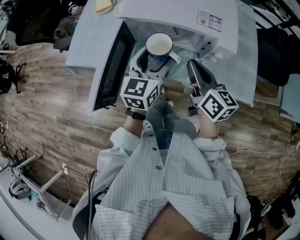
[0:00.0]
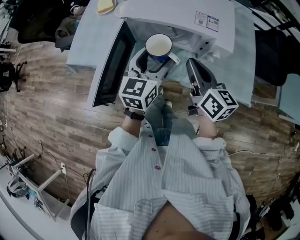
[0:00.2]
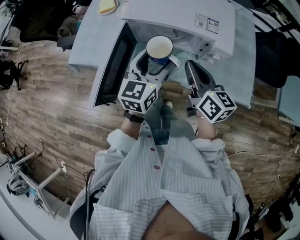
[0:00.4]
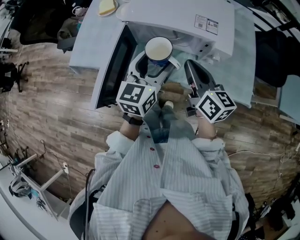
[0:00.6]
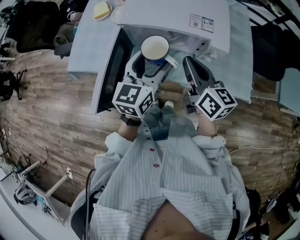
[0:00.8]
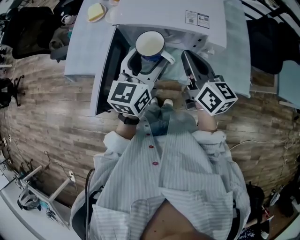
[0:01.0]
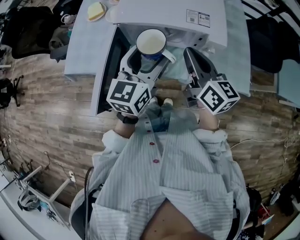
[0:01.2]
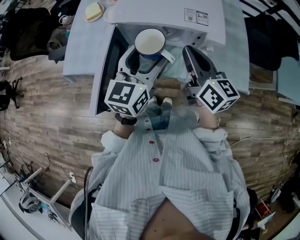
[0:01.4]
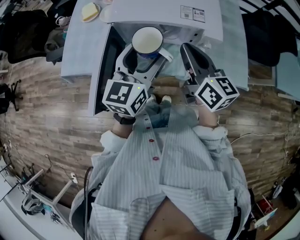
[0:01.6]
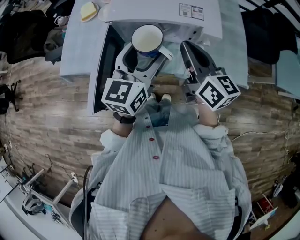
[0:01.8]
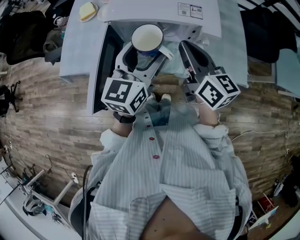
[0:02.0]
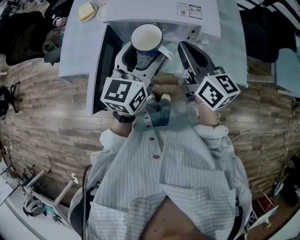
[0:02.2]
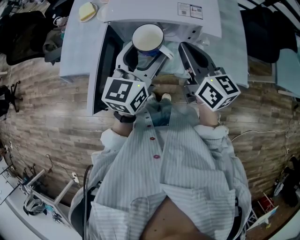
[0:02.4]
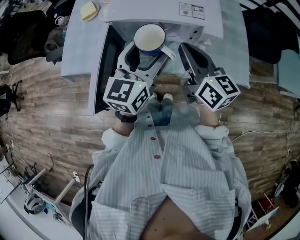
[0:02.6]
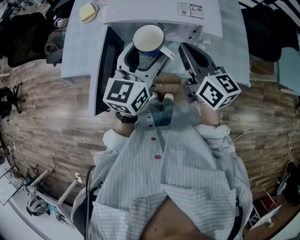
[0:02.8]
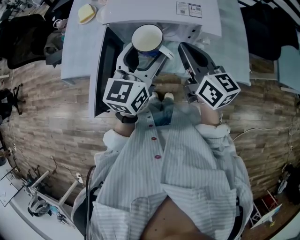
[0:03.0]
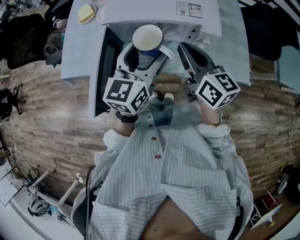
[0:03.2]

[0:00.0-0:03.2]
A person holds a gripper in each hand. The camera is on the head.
0.0 to 1.6 s: The grippers both shift upward by roughly 10 cm.
1.6 to 3.2 s: The grippers move only a little.

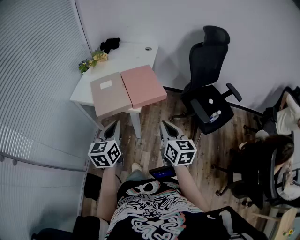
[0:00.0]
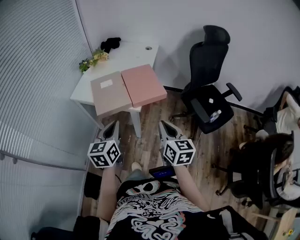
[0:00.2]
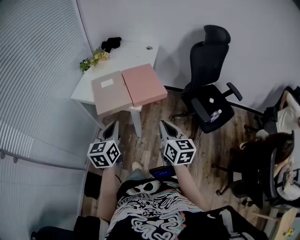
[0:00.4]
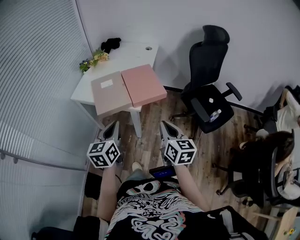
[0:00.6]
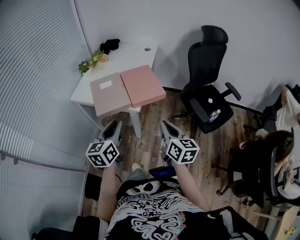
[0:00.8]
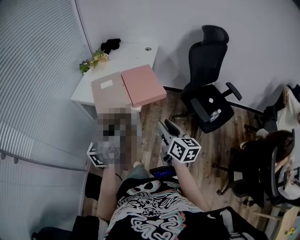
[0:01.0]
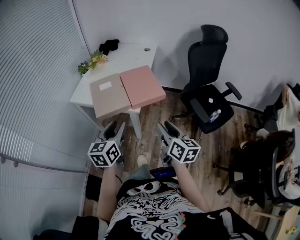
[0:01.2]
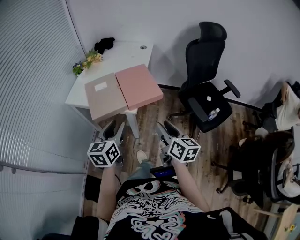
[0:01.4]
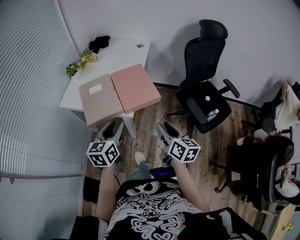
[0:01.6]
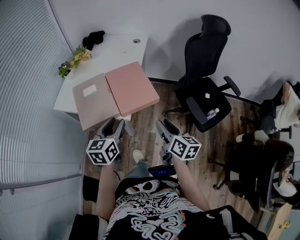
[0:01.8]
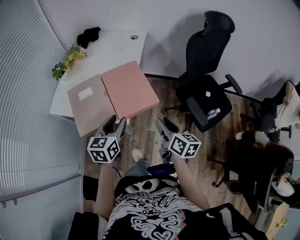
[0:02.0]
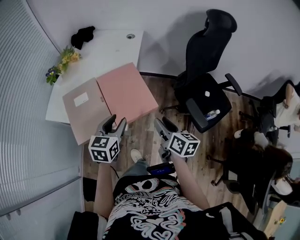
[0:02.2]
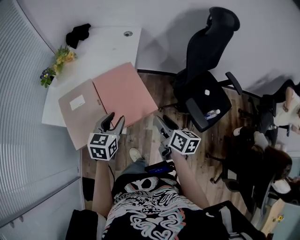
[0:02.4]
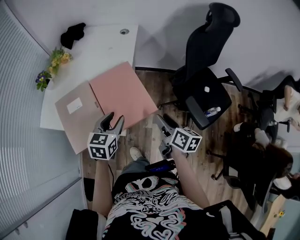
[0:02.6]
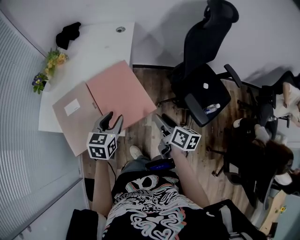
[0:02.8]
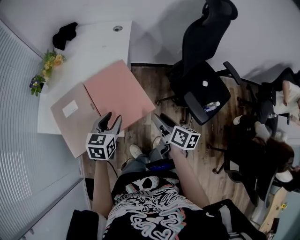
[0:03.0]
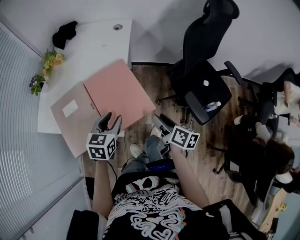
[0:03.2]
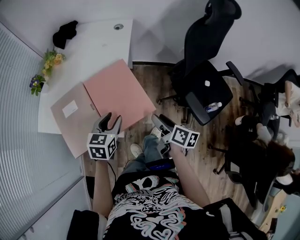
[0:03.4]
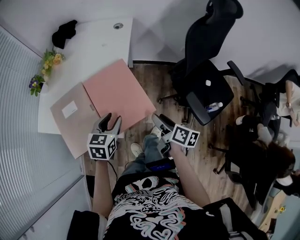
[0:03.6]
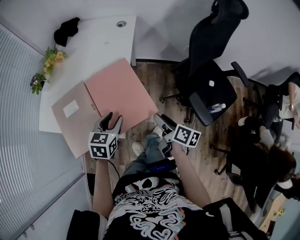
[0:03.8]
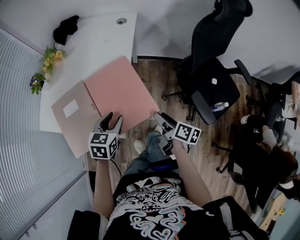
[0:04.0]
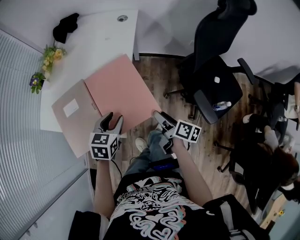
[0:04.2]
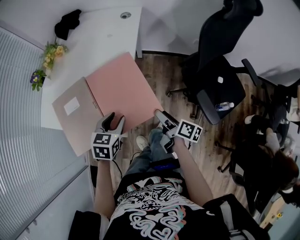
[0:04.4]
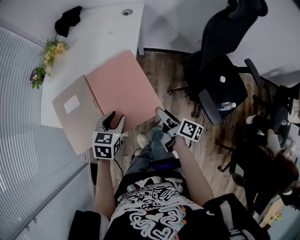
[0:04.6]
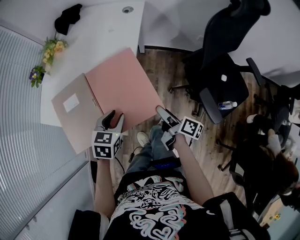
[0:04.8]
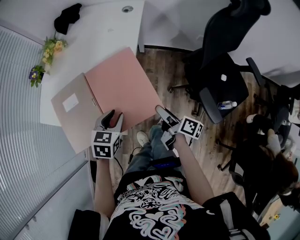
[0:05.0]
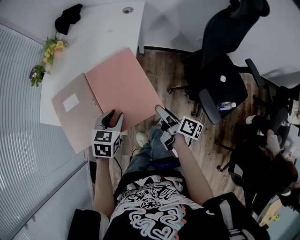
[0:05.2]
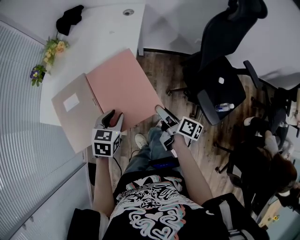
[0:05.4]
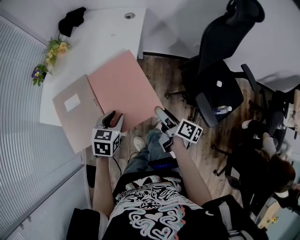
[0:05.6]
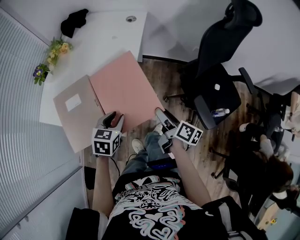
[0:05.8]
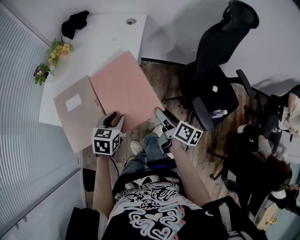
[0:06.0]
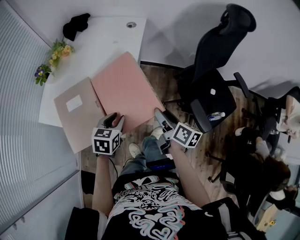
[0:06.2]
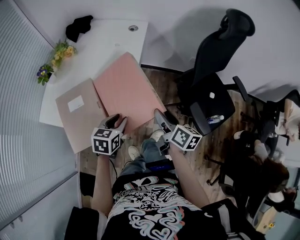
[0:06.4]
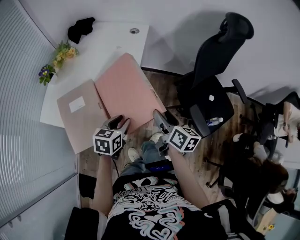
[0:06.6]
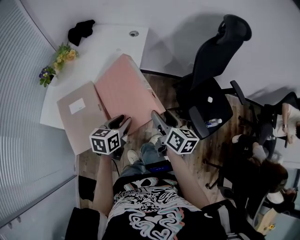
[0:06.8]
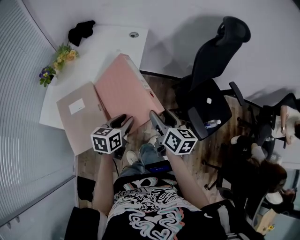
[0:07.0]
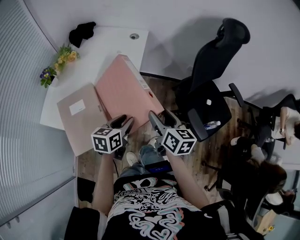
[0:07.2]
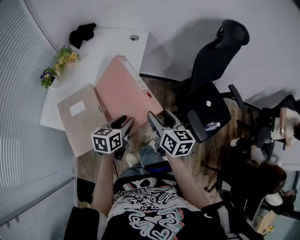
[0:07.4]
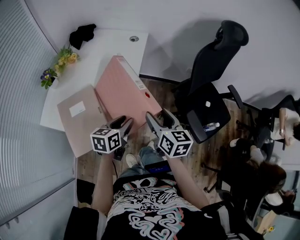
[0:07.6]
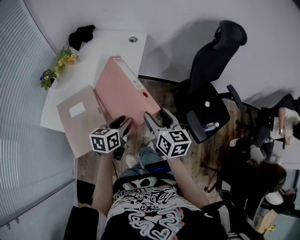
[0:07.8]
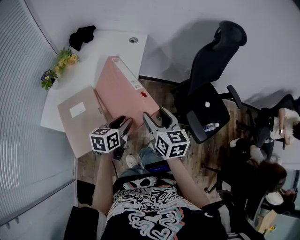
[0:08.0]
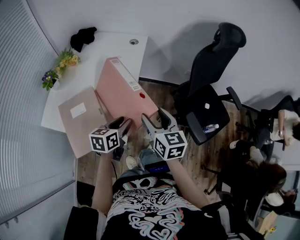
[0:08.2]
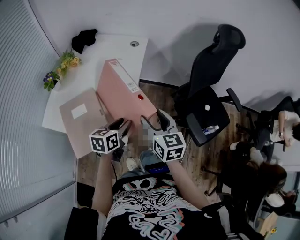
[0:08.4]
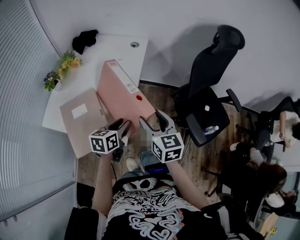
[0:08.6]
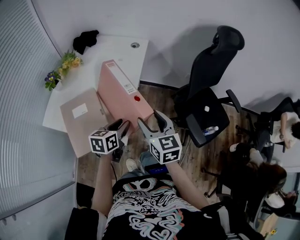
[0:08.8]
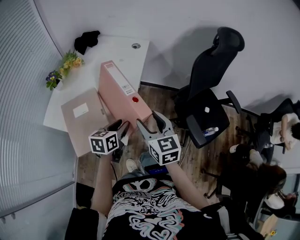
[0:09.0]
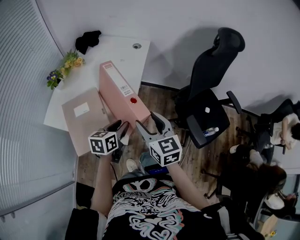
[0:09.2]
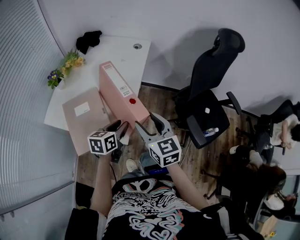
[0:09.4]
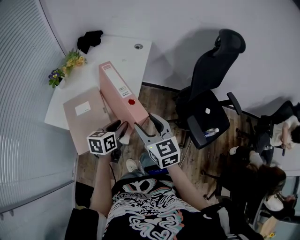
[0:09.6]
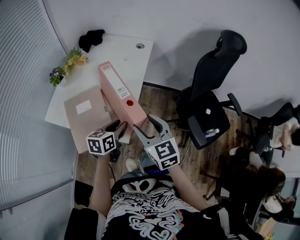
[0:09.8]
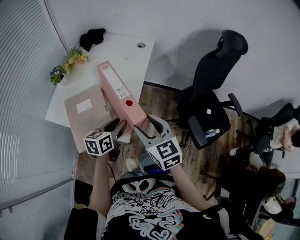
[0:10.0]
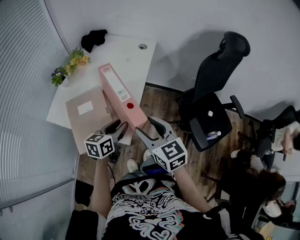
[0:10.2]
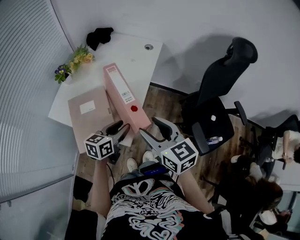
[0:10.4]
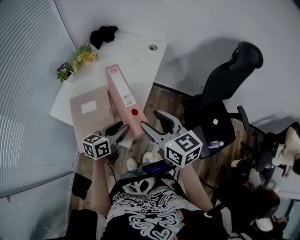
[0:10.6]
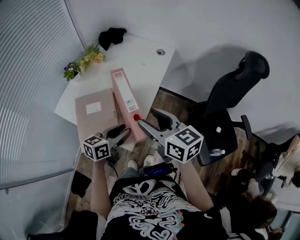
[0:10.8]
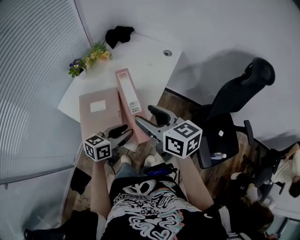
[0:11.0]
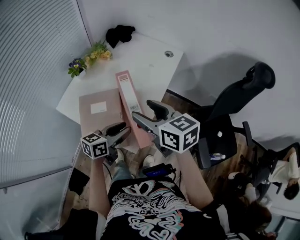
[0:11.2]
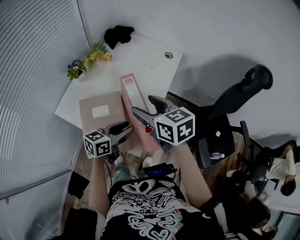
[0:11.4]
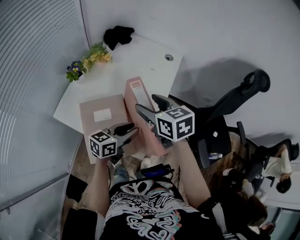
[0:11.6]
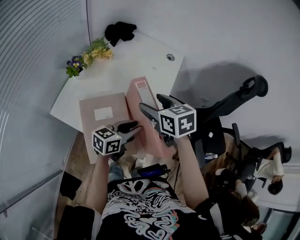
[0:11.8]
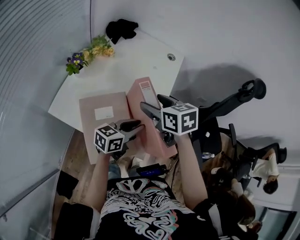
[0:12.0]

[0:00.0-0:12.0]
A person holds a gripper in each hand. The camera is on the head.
0.0 to 1.6 s: Both grippers travel together forward, about 5 cm. The right gripper opens its fingers, while the left gripper opens its fingers.
1.6 to 3.0 s: Both grippers move forward and downward, approximately 25 cm. The right gripper turns by roughly 20 degrees, while the left gripper turns by roughly 20 degrees.
3.0 to 4.4 s: The right gripper is displaced downward by roughly 10 cm, and swivels about 20 degrees; the left gripper ends up some 5 cm from where it was.
4.4 to 6.0 s: The right gripper heads upward, covering about 5 cm.
6.0 to 7.6 s: The left gripper changes its angle by approximately 20 degrees. Meanwhile the right gripper travels upward by approximately 10 cm, and swivels some 40 degrees.
7.6 to 9.0 s: The right gripper ends up about 5 cm from where it was.
9.0 to 10.4 s: The right gripper changes place by about 5 cm.
10.4 to 12.0 s: The right gripper shifts about 25 cm forward and to the left, and changes its angle by approximately 20 degrees. The left gripper is displaced forward and to the left by roughly 10 cm.

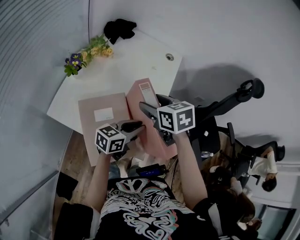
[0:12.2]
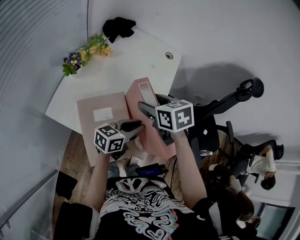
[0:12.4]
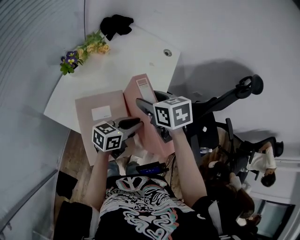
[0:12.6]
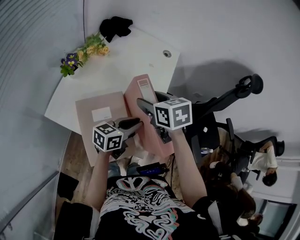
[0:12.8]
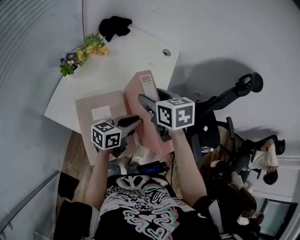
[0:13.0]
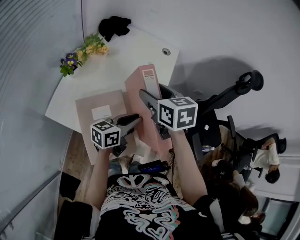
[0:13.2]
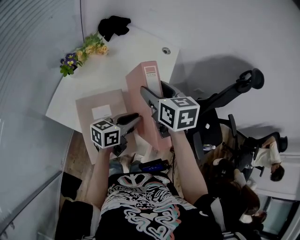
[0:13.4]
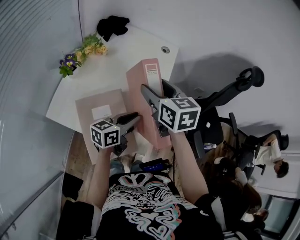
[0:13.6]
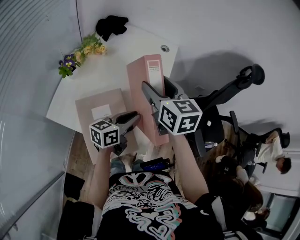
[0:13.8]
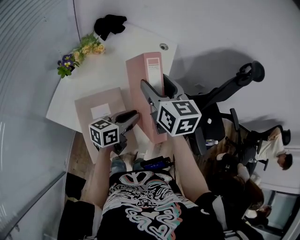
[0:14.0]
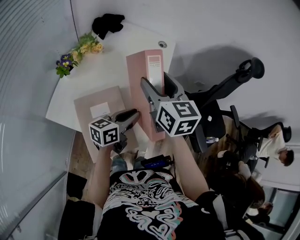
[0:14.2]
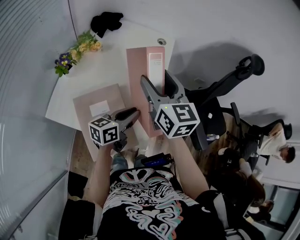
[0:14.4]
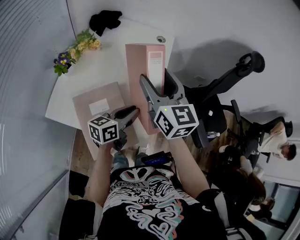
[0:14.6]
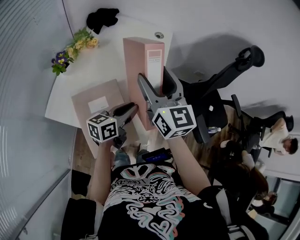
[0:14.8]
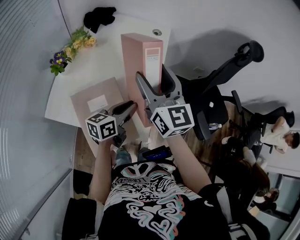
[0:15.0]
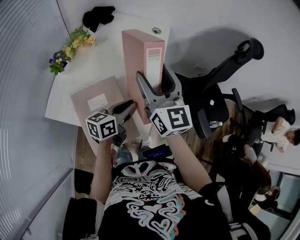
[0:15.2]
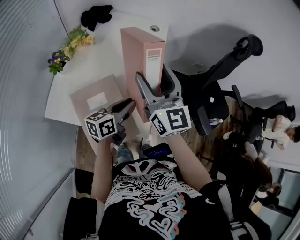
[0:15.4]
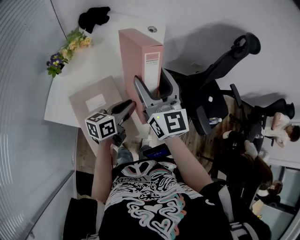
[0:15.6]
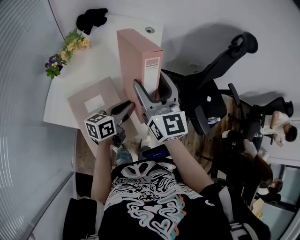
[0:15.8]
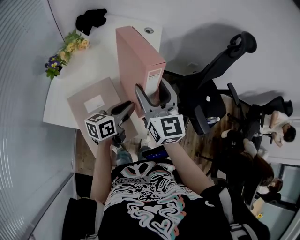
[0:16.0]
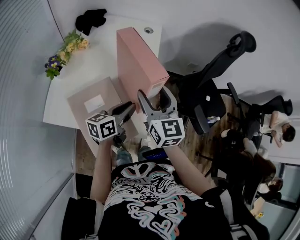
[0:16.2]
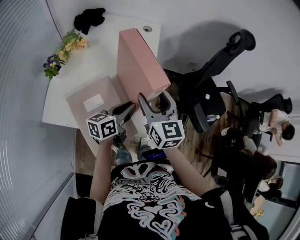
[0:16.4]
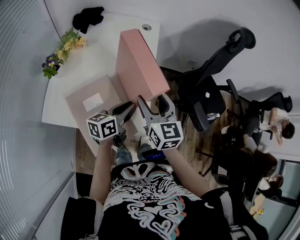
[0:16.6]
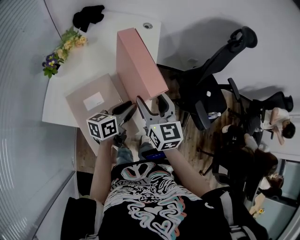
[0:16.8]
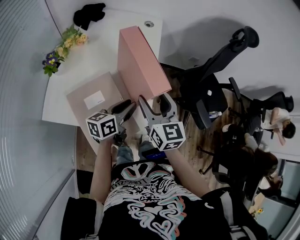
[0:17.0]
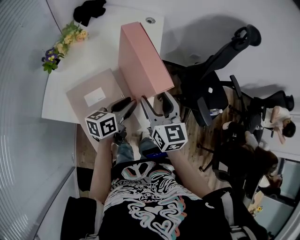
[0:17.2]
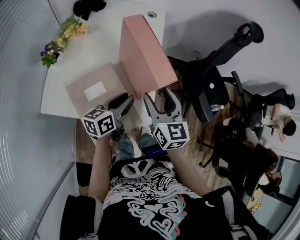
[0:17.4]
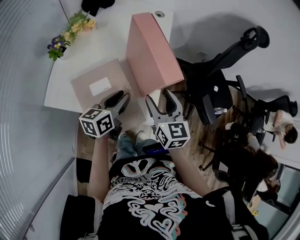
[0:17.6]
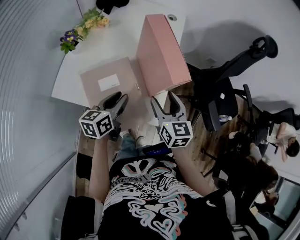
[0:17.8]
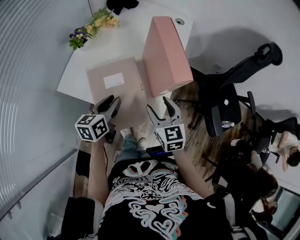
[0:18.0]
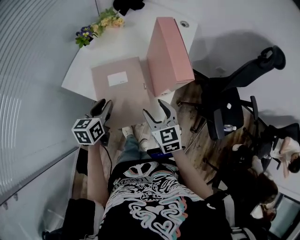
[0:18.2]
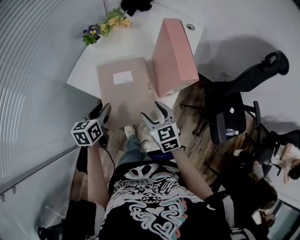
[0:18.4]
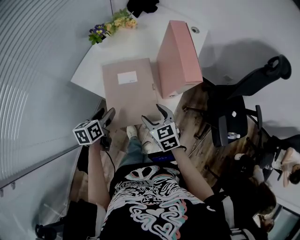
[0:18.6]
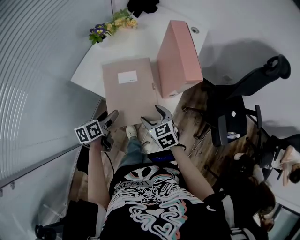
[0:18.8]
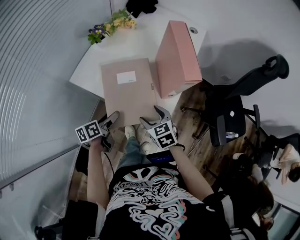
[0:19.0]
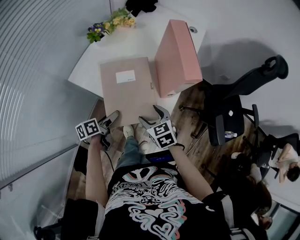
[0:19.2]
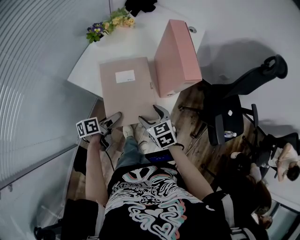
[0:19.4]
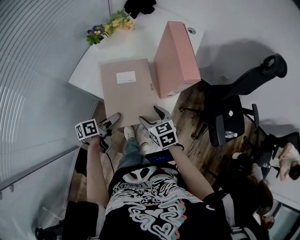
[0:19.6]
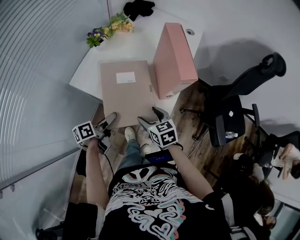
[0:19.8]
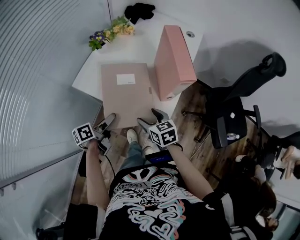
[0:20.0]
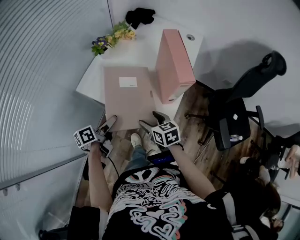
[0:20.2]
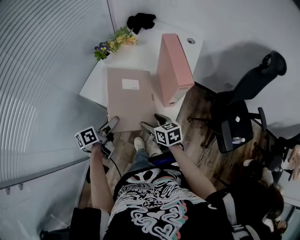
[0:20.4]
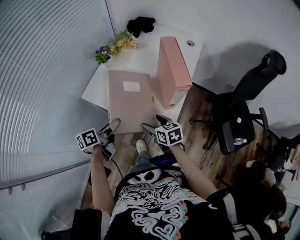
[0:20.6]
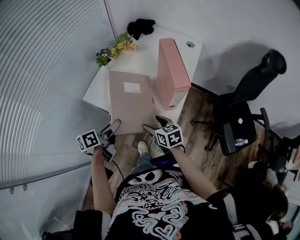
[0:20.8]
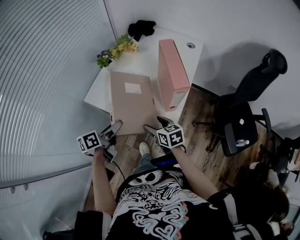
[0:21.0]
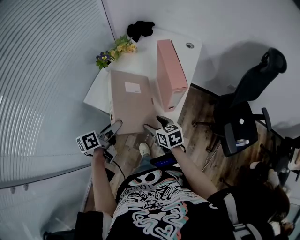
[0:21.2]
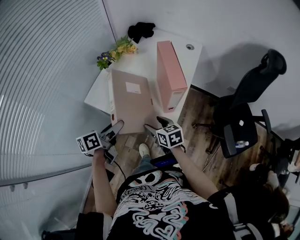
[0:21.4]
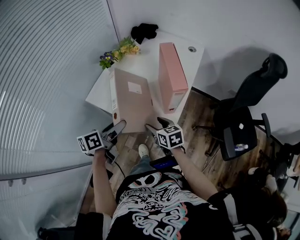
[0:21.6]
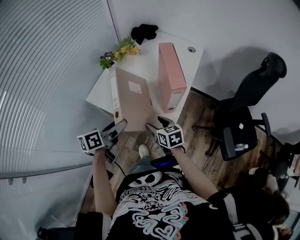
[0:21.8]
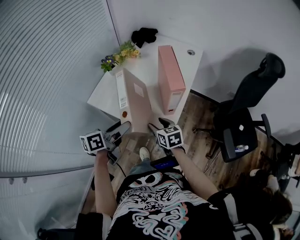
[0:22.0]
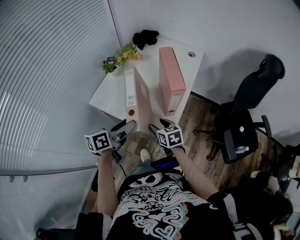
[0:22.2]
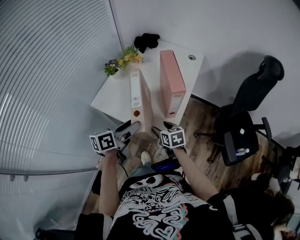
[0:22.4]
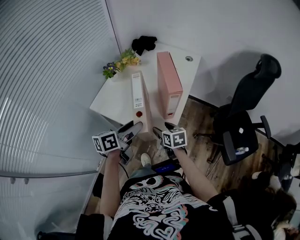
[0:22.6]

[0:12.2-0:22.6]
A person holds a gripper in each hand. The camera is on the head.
12.2 to 13.6 s: The right gripper heads upward, covering roughly 5 cm.
13.6 to 15.2 s: The right gripper ends up about 5 cm from where it was, and angles its fingers upward, by roughly 30 degrees.
15.2 to 16.6 s: The right gripper goes about 15 cm downward, to the right and backward.
16.6 to 18.2 s: The right gripper ends up about 15 cm from where it was, and swivels roughly 30 degrees; the left gripper moves about 20 cm, and changes its angle by roughly 40 degrees.
18.2 to 19.6 s: The right gripper goes approximately 5 cm downward. The left gripper heads downward and backward, covering about 10 cm, swivels approximately 40 degrees, and opens.
19.6 to 21.2 s: The left gripper shifts roughly 15 cm upward.
21.2 to 22.6 s: The left gripper travels to the right and upward by approximately 10 cm.
